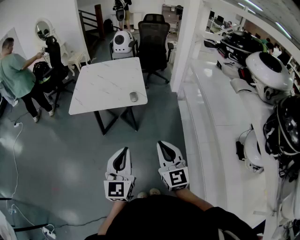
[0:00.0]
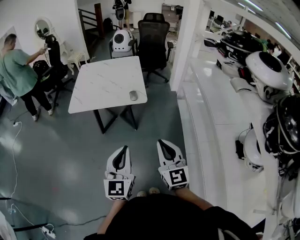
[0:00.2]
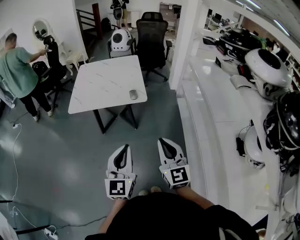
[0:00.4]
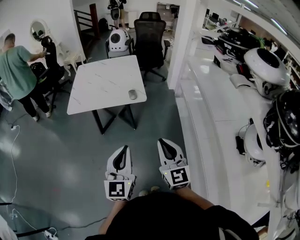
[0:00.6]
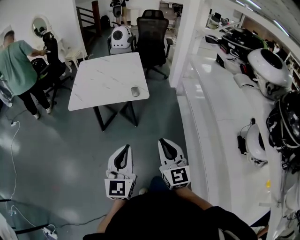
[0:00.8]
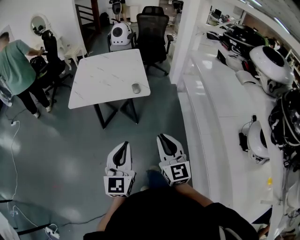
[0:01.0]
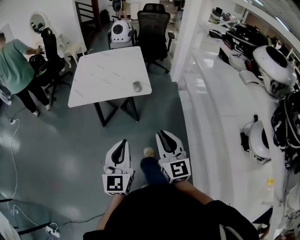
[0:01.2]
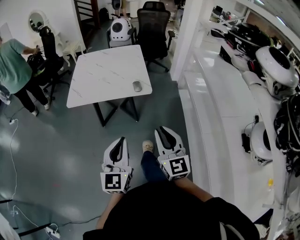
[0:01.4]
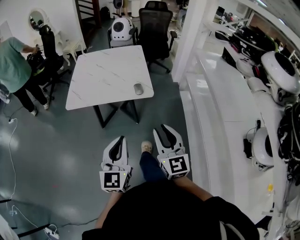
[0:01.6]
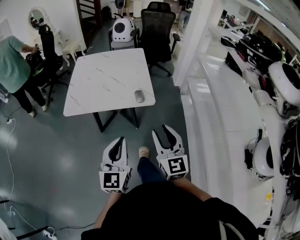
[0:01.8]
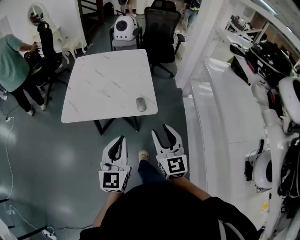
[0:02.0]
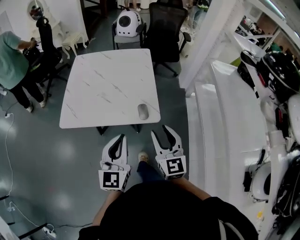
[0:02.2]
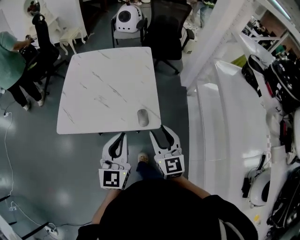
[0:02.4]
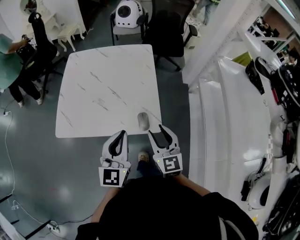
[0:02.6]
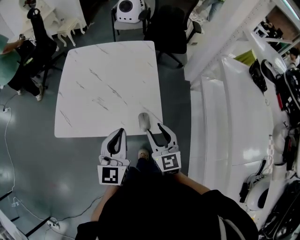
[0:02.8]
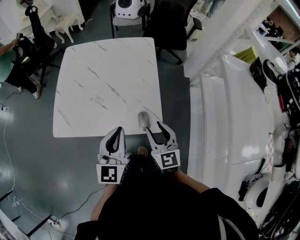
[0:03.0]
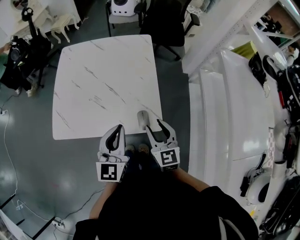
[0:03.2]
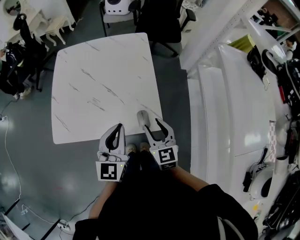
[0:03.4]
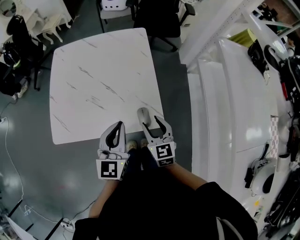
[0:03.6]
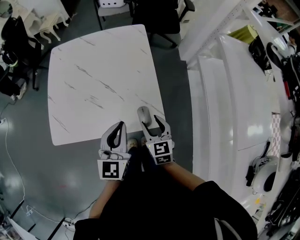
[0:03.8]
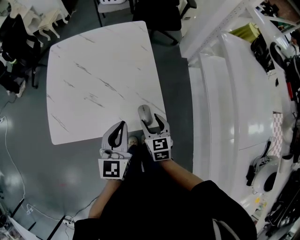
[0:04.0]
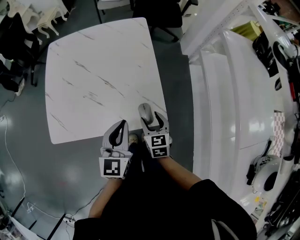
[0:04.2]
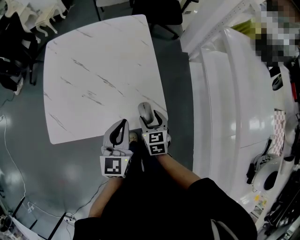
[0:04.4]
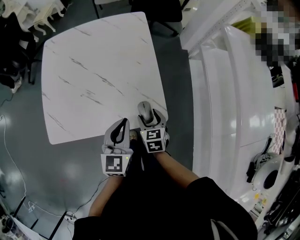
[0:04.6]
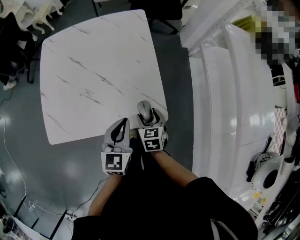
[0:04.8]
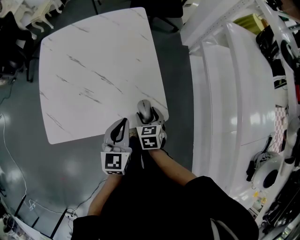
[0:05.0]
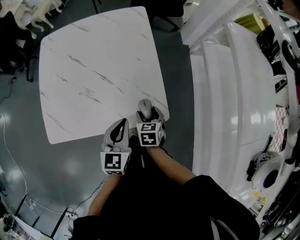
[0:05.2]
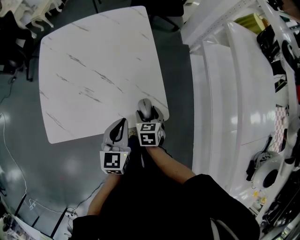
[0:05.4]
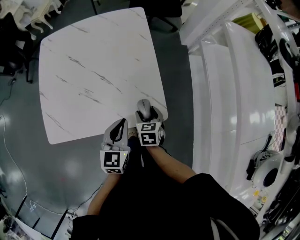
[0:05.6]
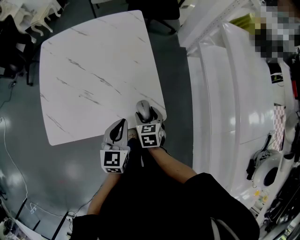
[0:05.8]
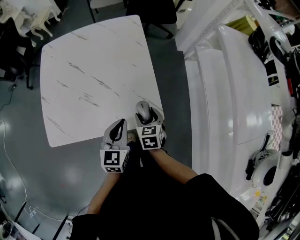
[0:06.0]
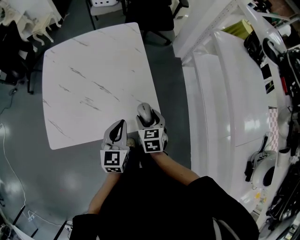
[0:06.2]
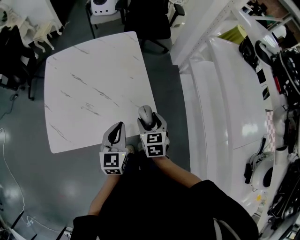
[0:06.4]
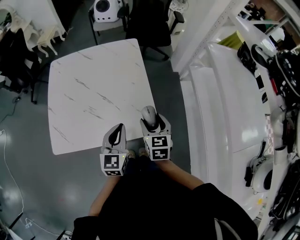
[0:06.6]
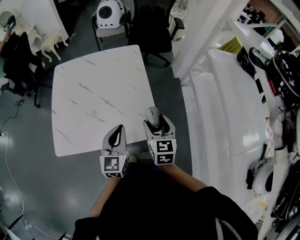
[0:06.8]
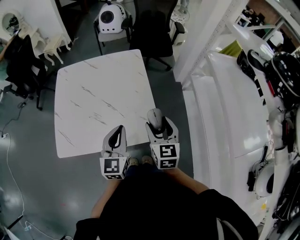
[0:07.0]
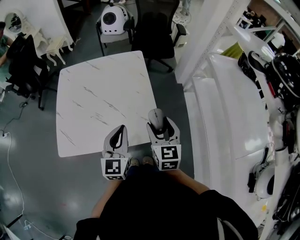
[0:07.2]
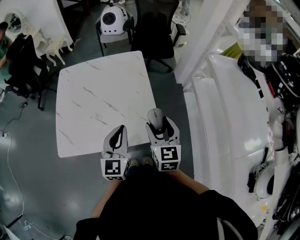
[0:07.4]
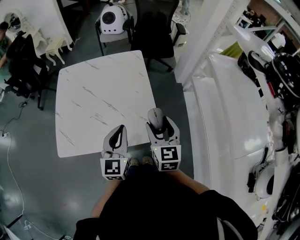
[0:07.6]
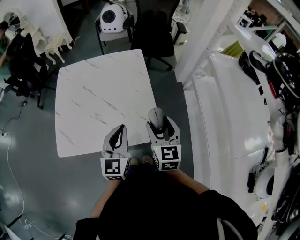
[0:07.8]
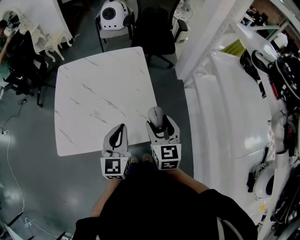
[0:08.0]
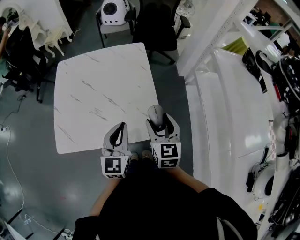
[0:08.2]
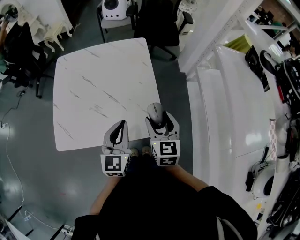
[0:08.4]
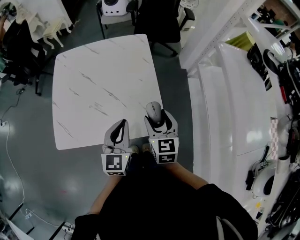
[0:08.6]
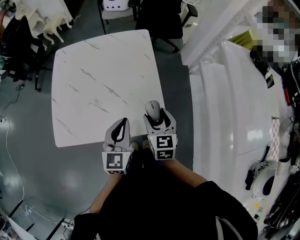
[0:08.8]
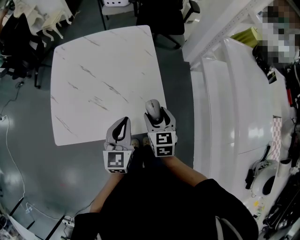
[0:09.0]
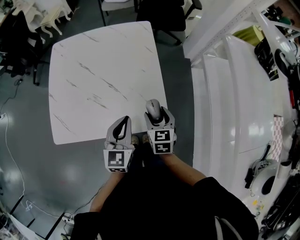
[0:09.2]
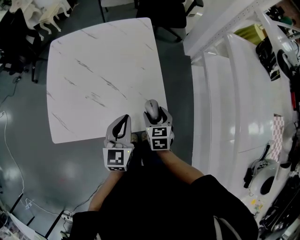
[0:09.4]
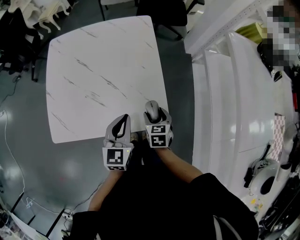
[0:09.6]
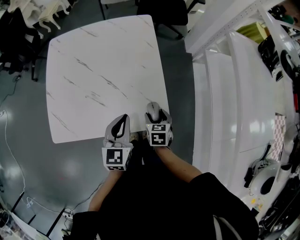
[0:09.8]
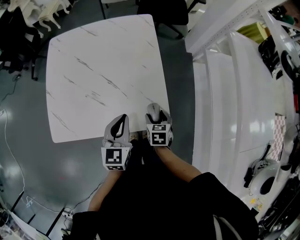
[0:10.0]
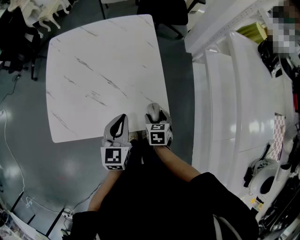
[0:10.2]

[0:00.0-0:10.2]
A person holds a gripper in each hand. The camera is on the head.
0:00.0 to 0:01.4: The right gripper goes some 10 cm to the left and forward, while the left gripper goes about 5 cm to the left.
0:01.4 to 0:03.0: The two grippers travel together, forward, about 40 cm. The right gripper opens its fingers.
0:03.0 to 0:04.4: The right gripper heads downward, covering about 15 cm, and turns by roughly 30 degrees, while the left gripper travels downward by roughly 10 cm.
0:04.4 to 0:05.8: The left gripper shifts some 5 cm downward.
0:05.8 to 0:07.2: The right gripper goes some 25 cm upward, and tilts its fingers some 30 degrees upward. Meanwhile the left gripper is displaced upward by about 15 cm.
0:07.2 to 0:08.8: The left gripper ends up approximately 5 cm from where it was. The right gripper heads downward, covering approximately 10 cm.
0:08.8 to 0:10.2: The right gripper shifts approximately 15 cm downward, and changes its angle by about 30 degrees. Meanwhile the left gripper shifts some 5 cm downward.

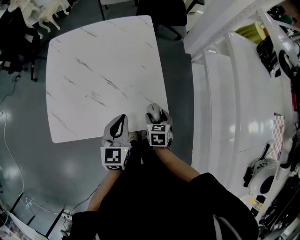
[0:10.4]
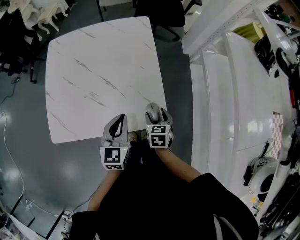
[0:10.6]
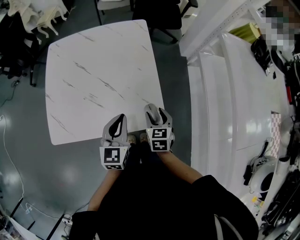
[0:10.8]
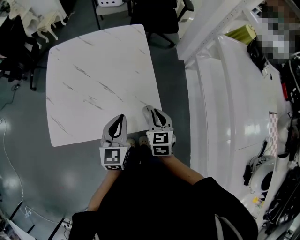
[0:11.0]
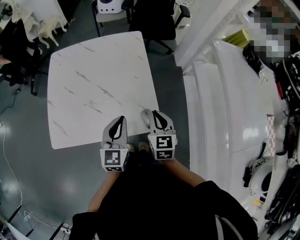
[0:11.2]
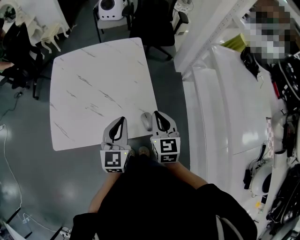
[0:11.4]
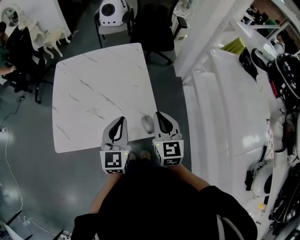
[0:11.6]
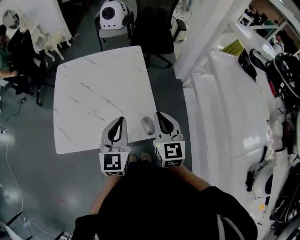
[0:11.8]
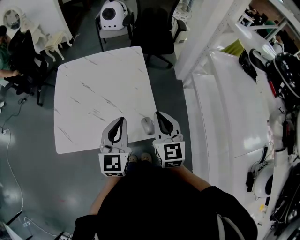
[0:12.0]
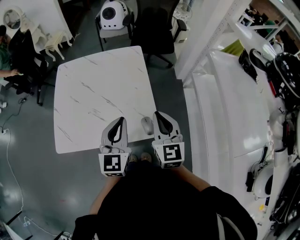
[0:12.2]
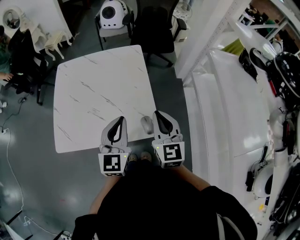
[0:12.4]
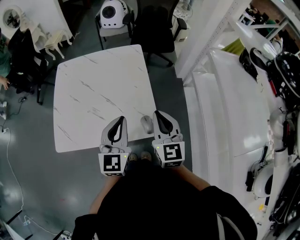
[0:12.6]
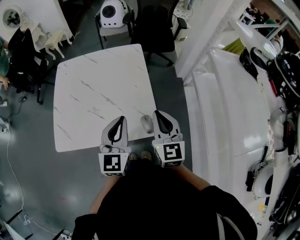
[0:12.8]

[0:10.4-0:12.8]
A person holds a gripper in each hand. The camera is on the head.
0:10.4 to 0:11.6: The left gripper shifts about 10 cm upward, while the right gripper is displaced upward by approximately 25 cm, angles its fingers upward, by about 40 degrees, and closes up.
0:11.6 to 0:12.8: The grippers make only small movements.

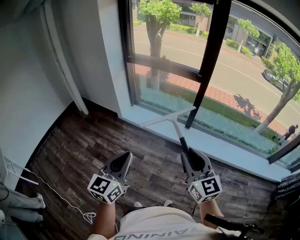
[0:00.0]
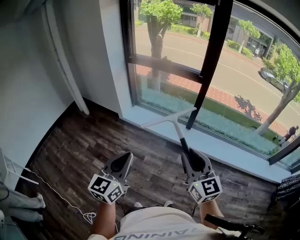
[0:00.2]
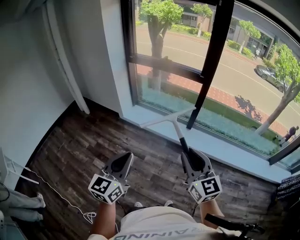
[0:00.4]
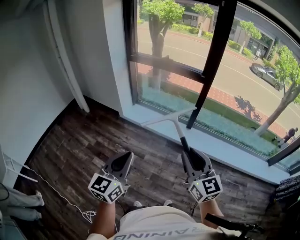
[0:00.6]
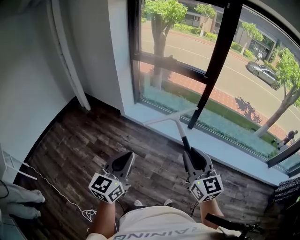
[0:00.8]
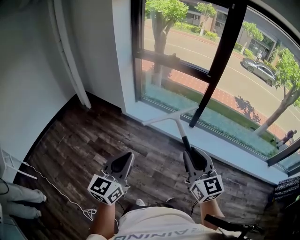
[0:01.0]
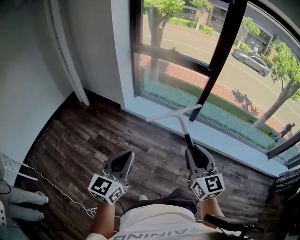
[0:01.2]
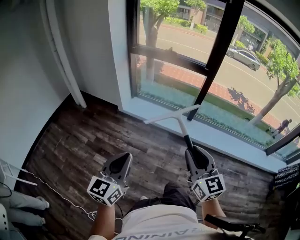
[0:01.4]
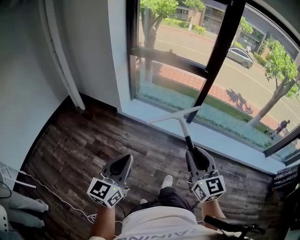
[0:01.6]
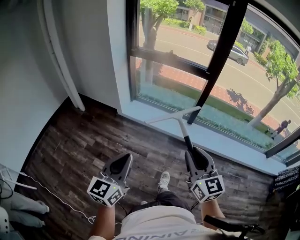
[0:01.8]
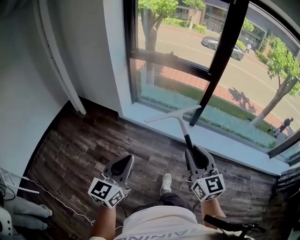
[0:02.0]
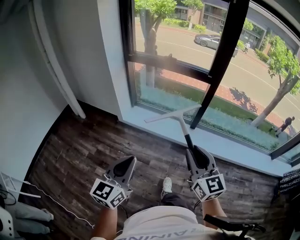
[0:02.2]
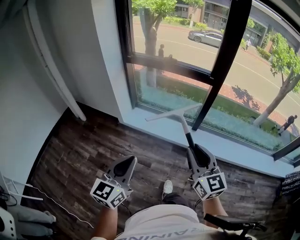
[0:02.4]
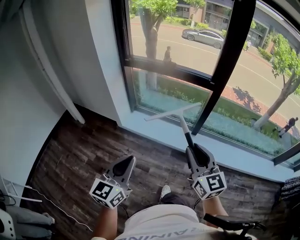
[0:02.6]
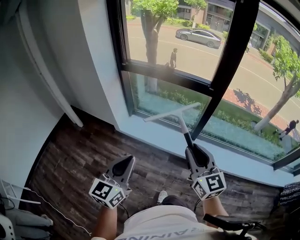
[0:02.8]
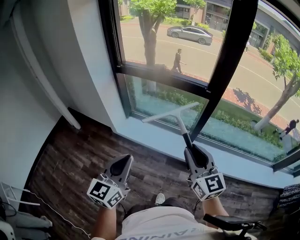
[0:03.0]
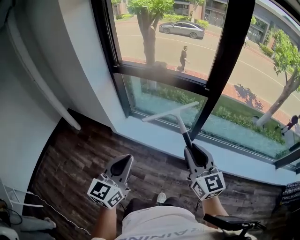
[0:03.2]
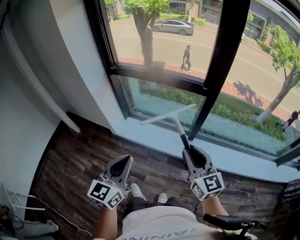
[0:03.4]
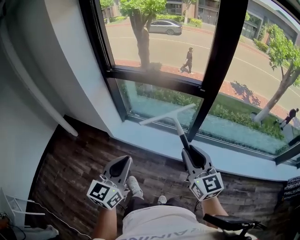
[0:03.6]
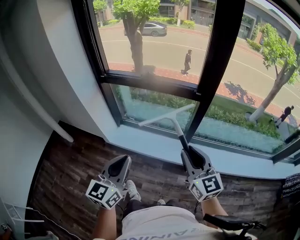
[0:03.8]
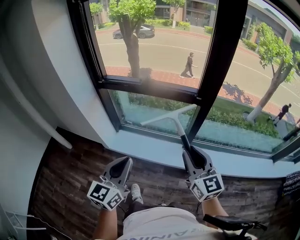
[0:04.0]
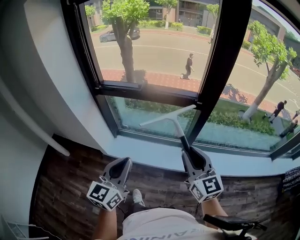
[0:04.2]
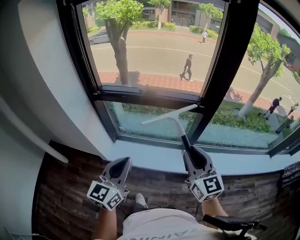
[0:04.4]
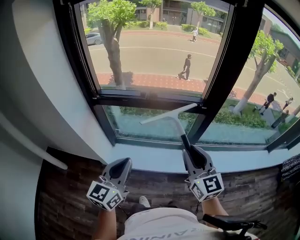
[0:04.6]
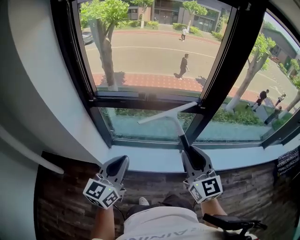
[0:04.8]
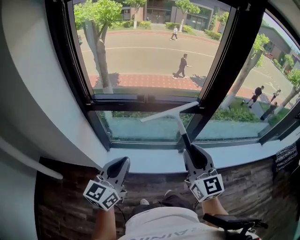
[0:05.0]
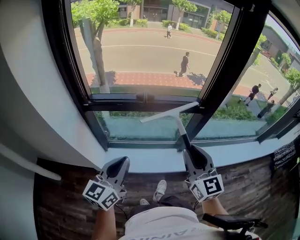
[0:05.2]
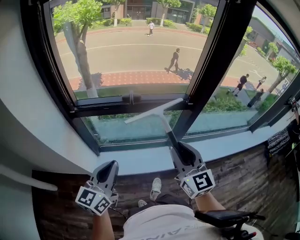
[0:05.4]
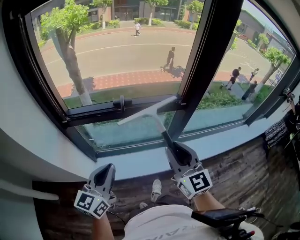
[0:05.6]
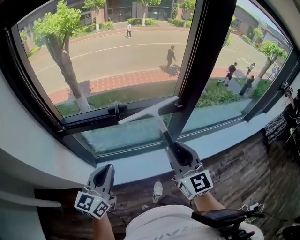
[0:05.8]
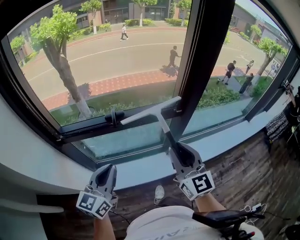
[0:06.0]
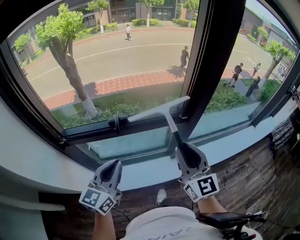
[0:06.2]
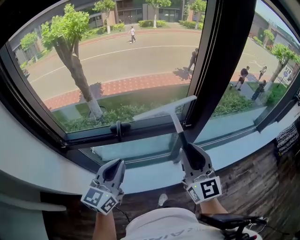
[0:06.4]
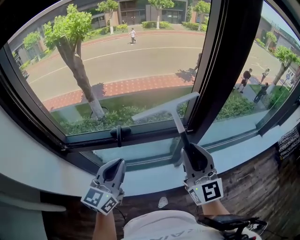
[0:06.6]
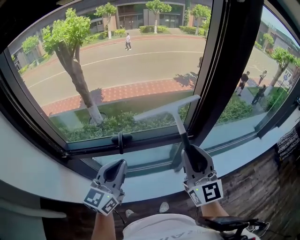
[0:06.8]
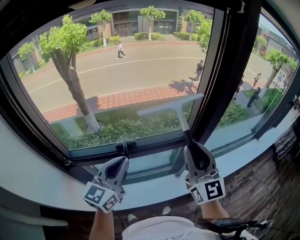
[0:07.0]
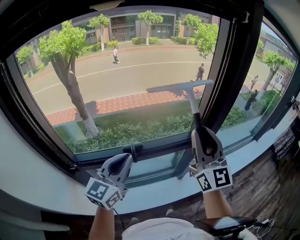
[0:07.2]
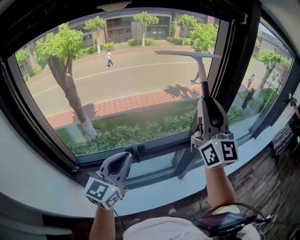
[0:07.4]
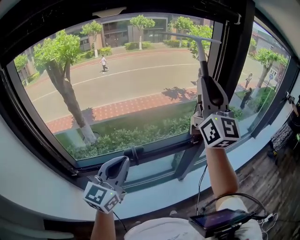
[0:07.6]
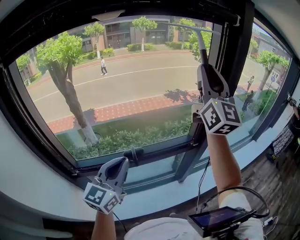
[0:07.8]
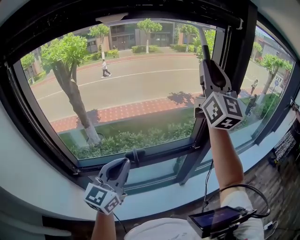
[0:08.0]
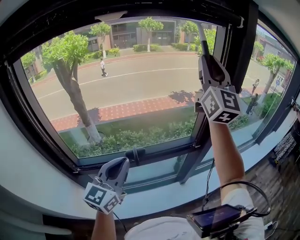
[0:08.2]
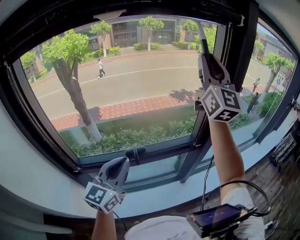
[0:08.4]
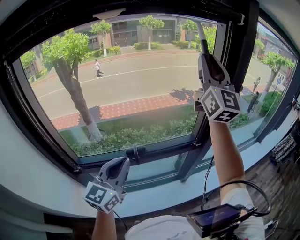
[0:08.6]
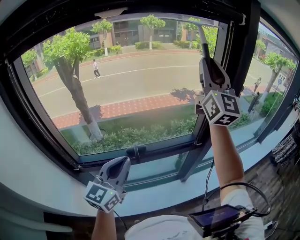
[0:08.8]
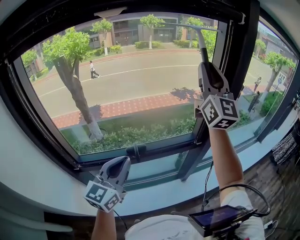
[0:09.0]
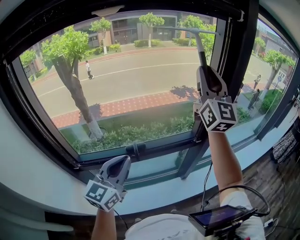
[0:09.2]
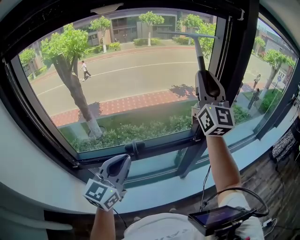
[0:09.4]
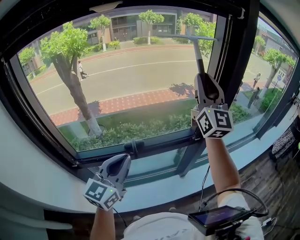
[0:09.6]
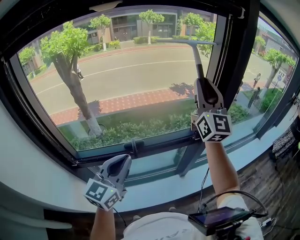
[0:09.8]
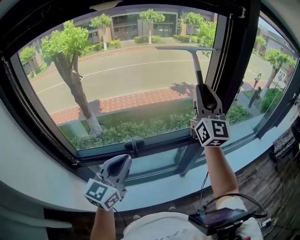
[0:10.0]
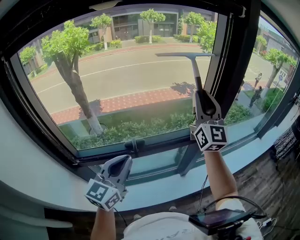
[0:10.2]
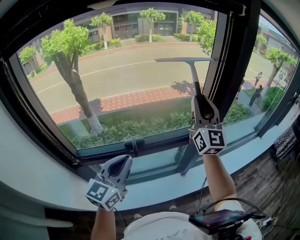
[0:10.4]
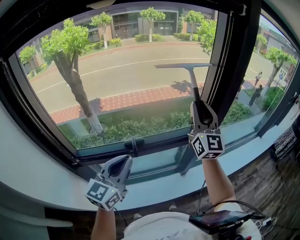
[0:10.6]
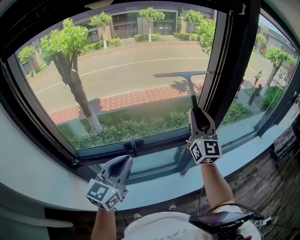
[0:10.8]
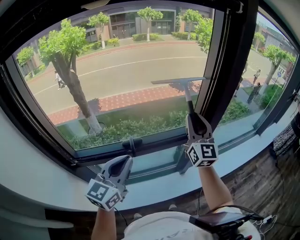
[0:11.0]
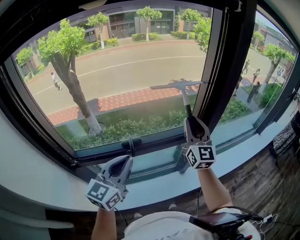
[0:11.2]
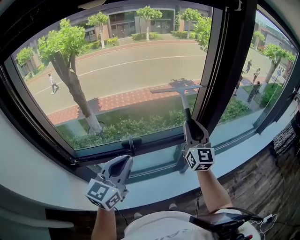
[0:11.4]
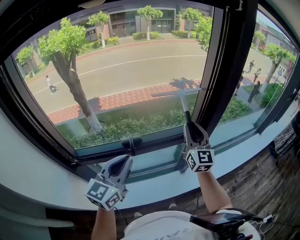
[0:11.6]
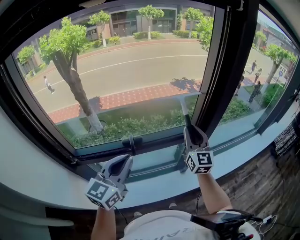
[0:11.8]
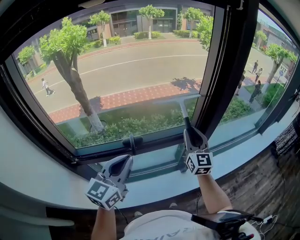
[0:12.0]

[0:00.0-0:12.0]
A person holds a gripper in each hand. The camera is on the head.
0:00.0 to 0:01.6: Both grippers travel together to the left, roughly 10 cm.
0:01.6 to 0:03.0: Both grippers travel together forward, roughly 35 cm.
0:03.0 to 0:04.4: The grippers both shift forward by roughly 20 cm.
0:04.4 to 0:06.0: Both grippers move forward and to the left, some 20 cm. The right gripper rotates about 20 degrees.
0:06.0 to 0:07.6: The right gripper is displaced upward and forward by roughly 35 cm, and tips its fingers upward by approximately 30 degrees, while the left gripper shifts about 20 cm forward and upward.
0:07.6 to 0:09.0: The right gripper is displaced forward by roughly 5 cm.
0:09.0 to 0:10.4: The right gripper is displaced downward by about 15 cm.
0:10.4 to 0:12.0: The right gripper is displaced downward by approximately 20 cm.
